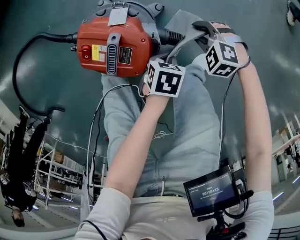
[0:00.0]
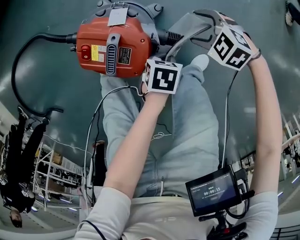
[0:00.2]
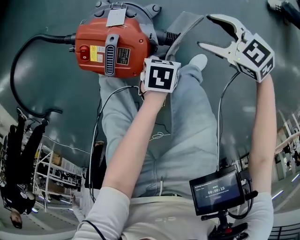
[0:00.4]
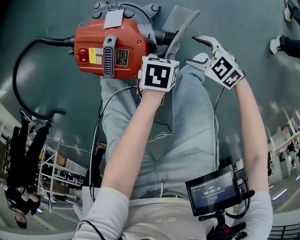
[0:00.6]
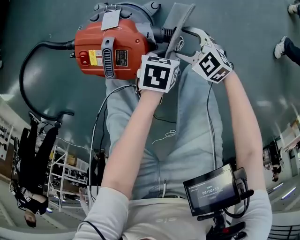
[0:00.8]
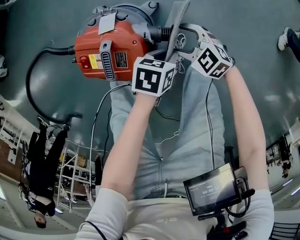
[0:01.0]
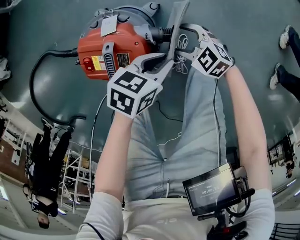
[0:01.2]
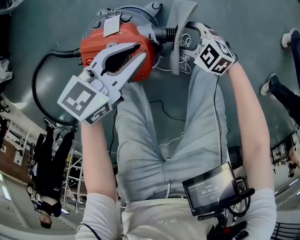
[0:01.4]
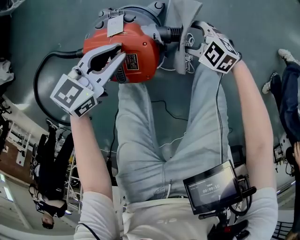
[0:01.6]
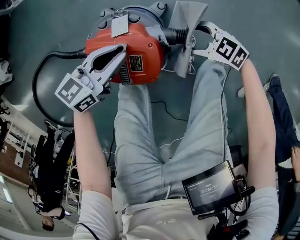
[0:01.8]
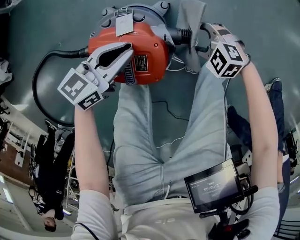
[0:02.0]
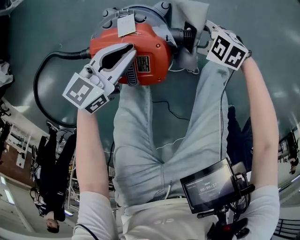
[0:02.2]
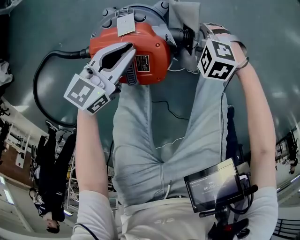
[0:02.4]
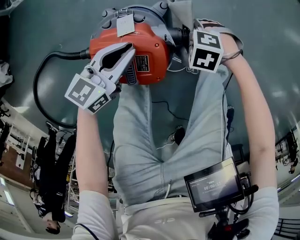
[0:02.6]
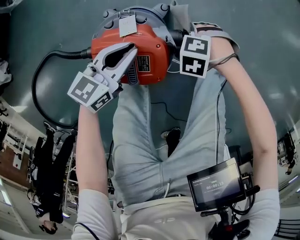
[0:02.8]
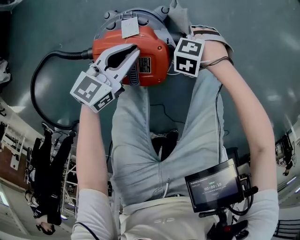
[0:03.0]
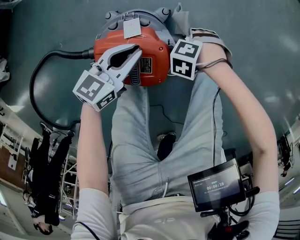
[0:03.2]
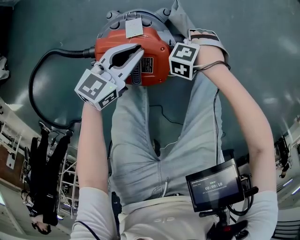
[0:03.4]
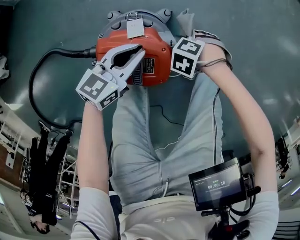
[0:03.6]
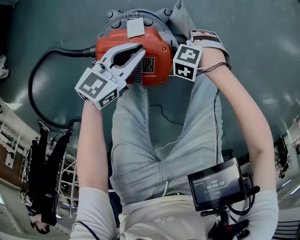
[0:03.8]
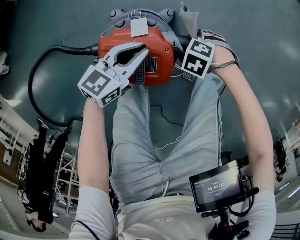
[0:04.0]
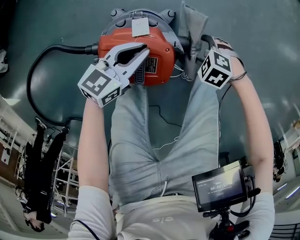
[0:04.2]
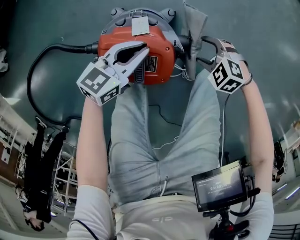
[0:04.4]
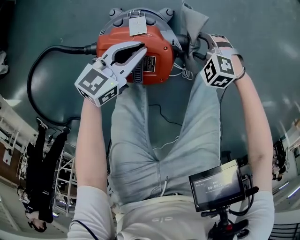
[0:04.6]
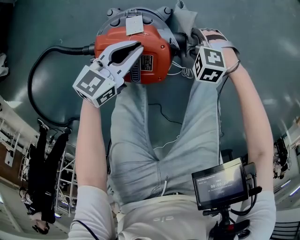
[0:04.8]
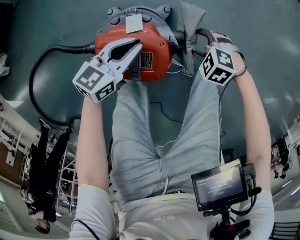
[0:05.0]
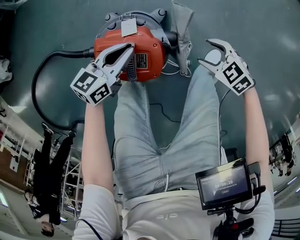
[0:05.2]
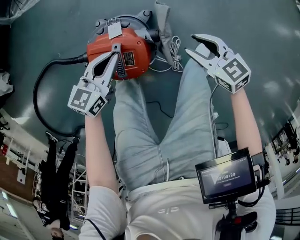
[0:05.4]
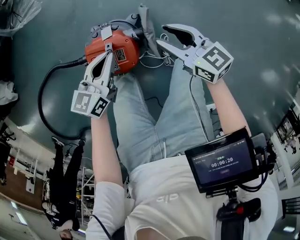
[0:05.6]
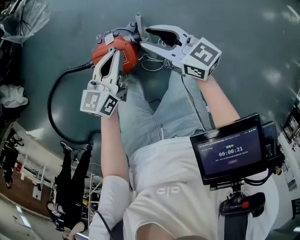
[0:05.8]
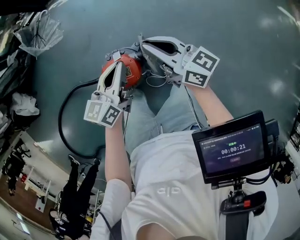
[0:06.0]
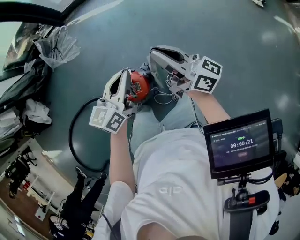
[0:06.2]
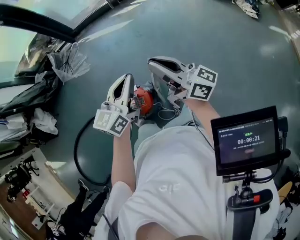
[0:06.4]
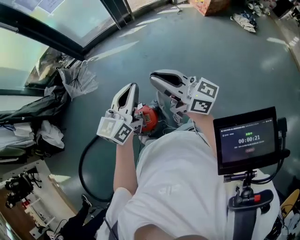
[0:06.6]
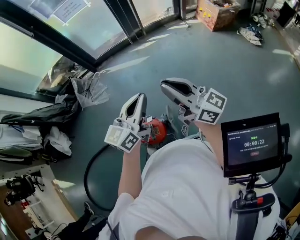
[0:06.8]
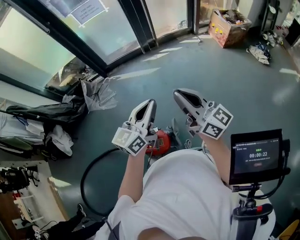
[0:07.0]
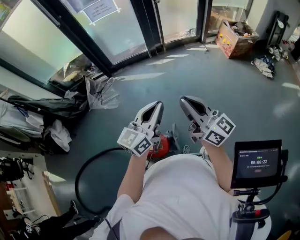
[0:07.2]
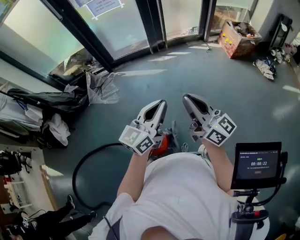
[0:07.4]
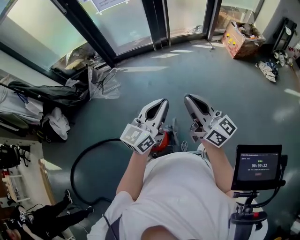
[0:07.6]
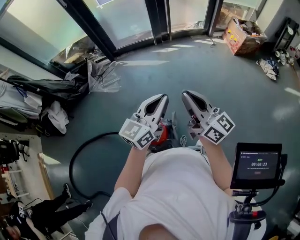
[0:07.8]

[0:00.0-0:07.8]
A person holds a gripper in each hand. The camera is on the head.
0:00.0 to 0:01.6: The right gripper moves about 10 cm upward and comes back, rotates about 40 degrees, and opens its fingers, while the left gripper changes place by about 20 cm, and angles its fingers upward, by about 30 degrees.
0:01.6 to 0:03.2: The right gripper turns by roughly 60 degrees.
0:03.2 to 0:04.6: The right gripper rotates about 30 degrees.
0:04.6 to 0:06.2: Both grippers move upward, roughly 50 cm. The right gripper tips its fingers upward by about 80 degrees, and closes, while the left gripper changes its angle by approximately 20 degrees.
0:06.2 to 0:07.8: The grippers both shift upward by about 15 cm. The left gripper swivels some 20 degrees. The right gripper swivels approximately 20 degrees.

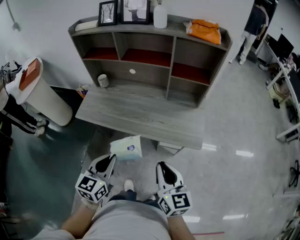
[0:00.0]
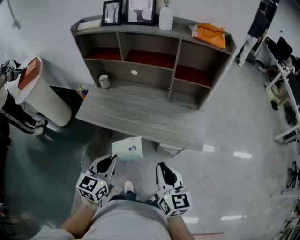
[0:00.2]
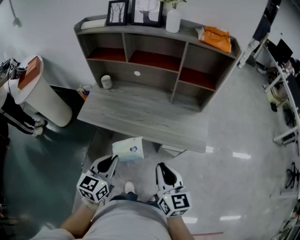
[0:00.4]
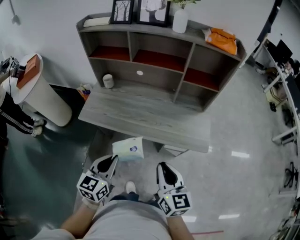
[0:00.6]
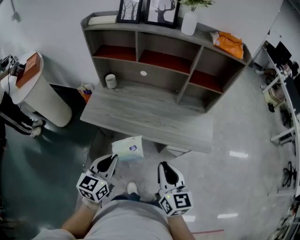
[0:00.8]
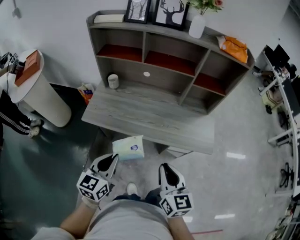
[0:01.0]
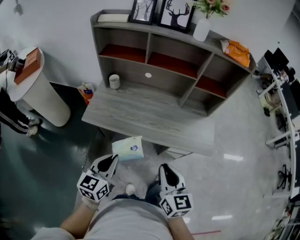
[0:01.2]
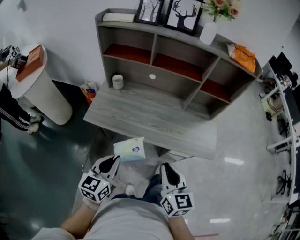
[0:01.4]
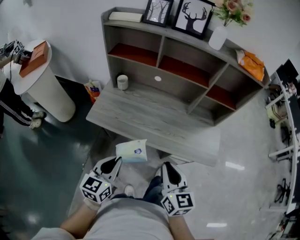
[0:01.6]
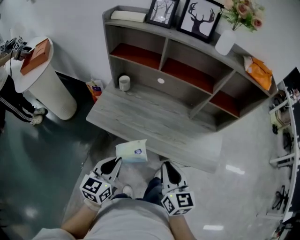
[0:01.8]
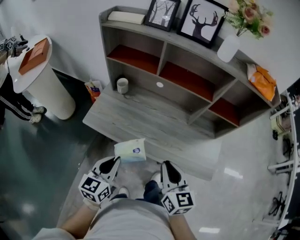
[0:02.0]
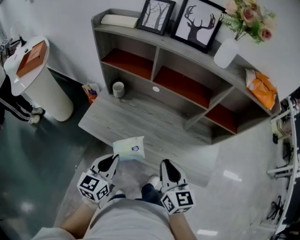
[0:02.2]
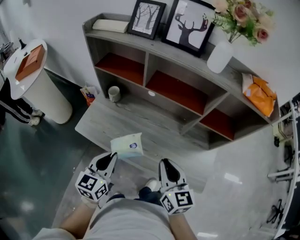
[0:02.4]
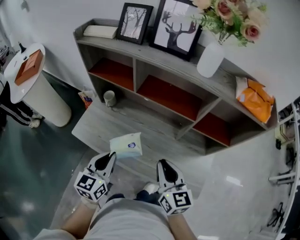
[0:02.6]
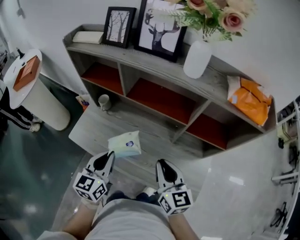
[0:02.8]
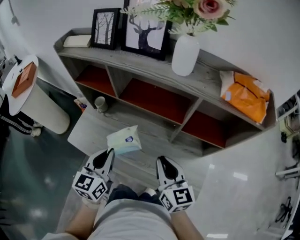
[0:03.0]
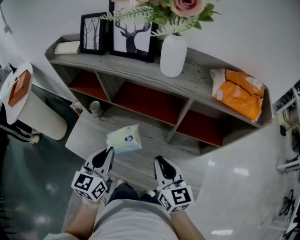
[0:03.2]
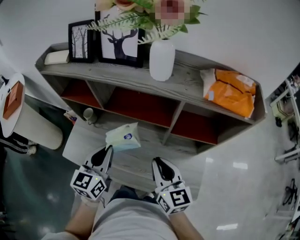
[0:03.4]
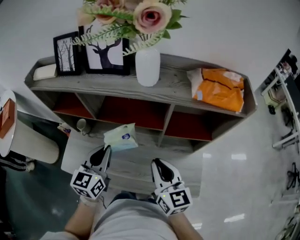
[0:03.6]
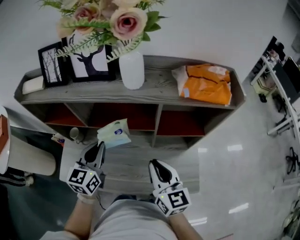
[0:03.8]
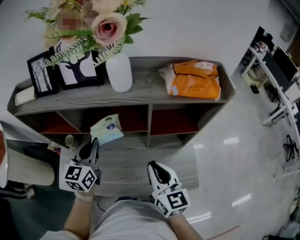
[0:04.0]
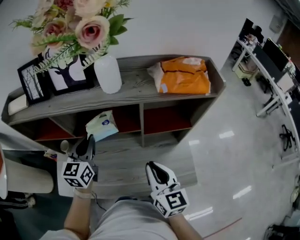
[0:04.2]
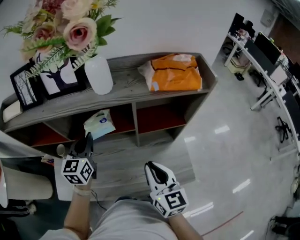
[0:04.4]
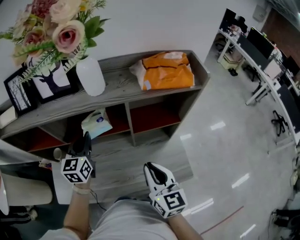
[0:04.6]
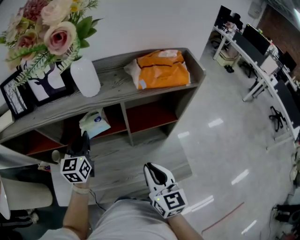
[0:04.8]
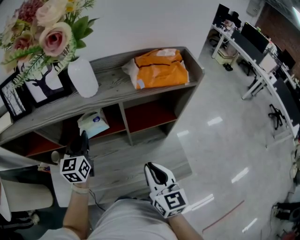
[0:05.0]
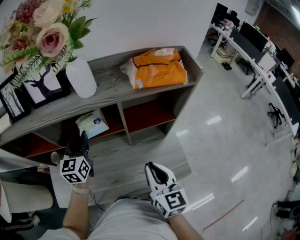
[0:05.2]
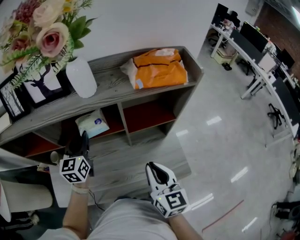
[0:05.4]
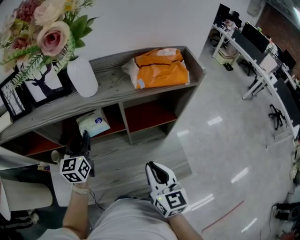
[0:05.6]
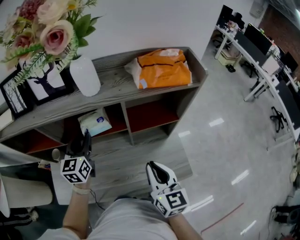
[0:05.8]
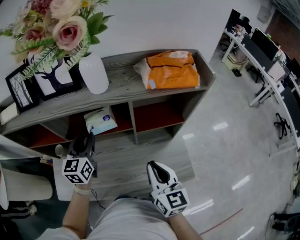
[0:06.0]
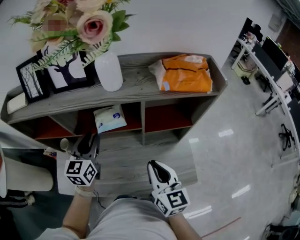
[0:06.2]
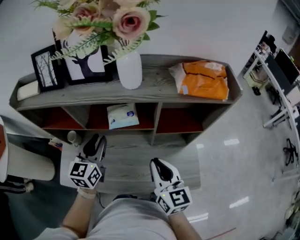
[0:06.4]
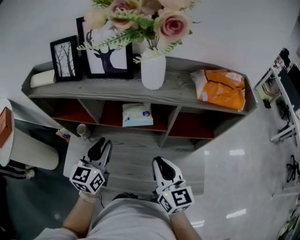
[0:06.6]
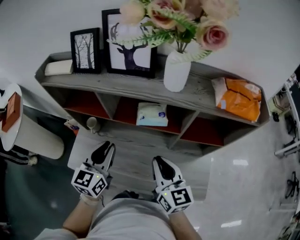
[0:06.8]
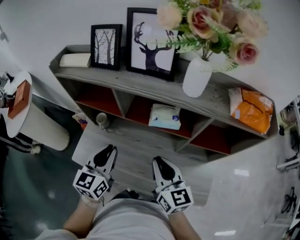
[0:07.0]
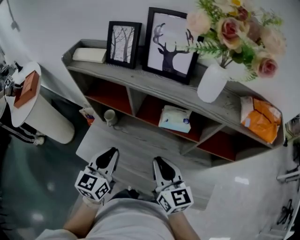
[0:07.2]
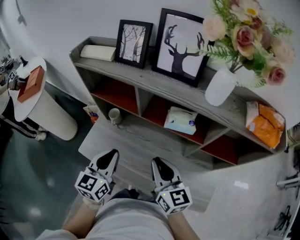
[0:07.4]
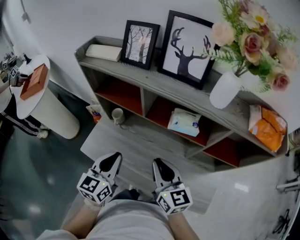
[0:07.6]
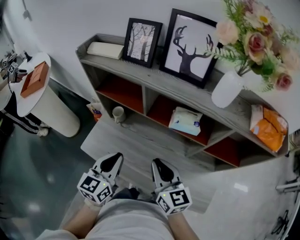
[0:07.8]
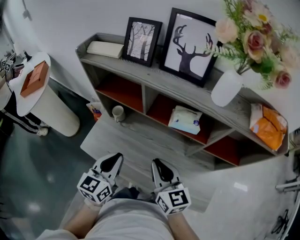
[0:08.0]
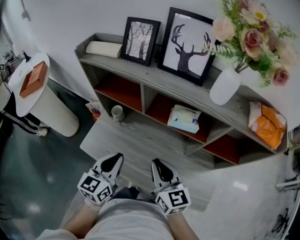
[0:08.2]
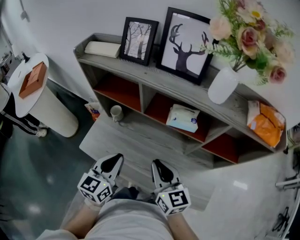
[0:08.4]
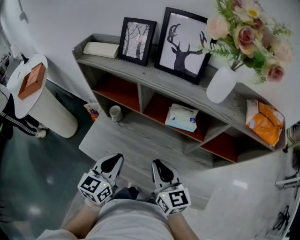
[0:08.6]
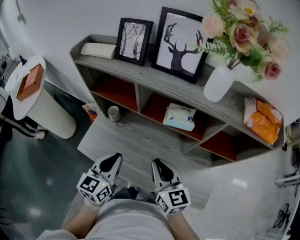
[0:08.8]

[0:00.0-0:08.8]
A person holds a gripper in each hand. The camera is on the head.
0:00.0 to 0:01.4: The grippers both shift to the left by roughly 20 cm.
0:01.4 to 0:03.0: Both grippers travel together forward and to the right, about 30 cm.
0:03.0 to 0:04.4: The left gripper heads forward, covering approximately 20 cm, and changes its angle by some 20 degrees, while the right gripper moves about 5 cm, and rotates approximately 30 degrees.
0:04.4 to 0:05.8: The left gripper opens.
0:05.8 to 0:07.4: The right gripper shifts by roughly 20 cm, and swivels roughly 40 degrees. The left gripper changes place by roughly 25 cm, and closes up.
0:07.4 to 0:08.8: There are only small adjustments of the grippers.

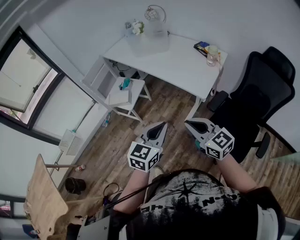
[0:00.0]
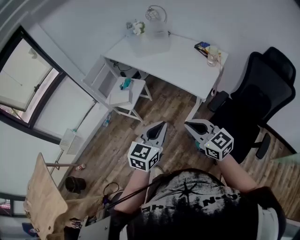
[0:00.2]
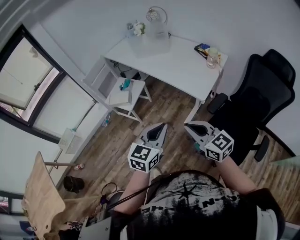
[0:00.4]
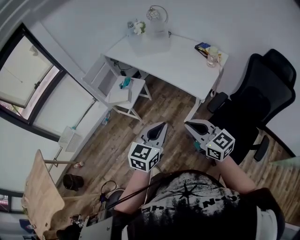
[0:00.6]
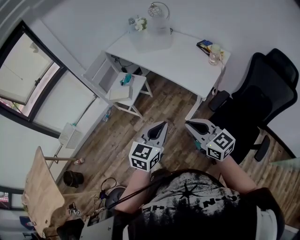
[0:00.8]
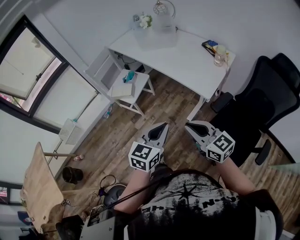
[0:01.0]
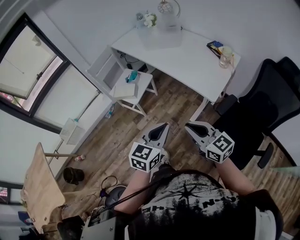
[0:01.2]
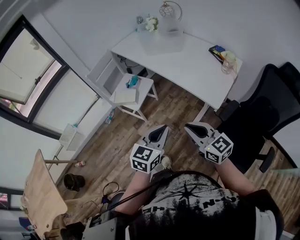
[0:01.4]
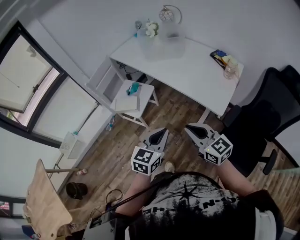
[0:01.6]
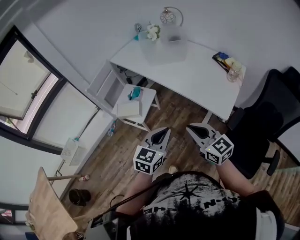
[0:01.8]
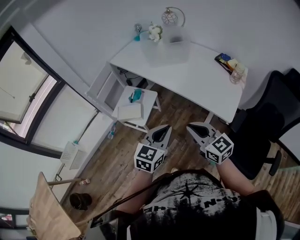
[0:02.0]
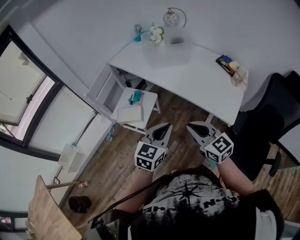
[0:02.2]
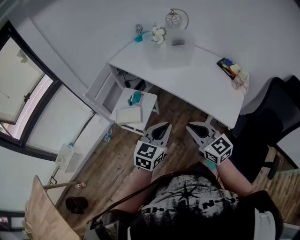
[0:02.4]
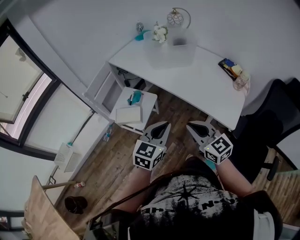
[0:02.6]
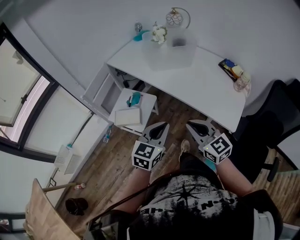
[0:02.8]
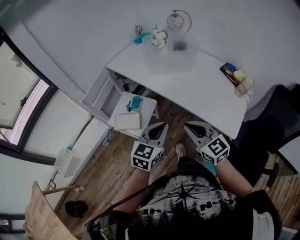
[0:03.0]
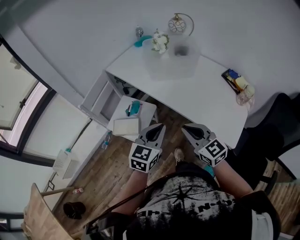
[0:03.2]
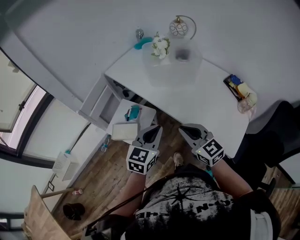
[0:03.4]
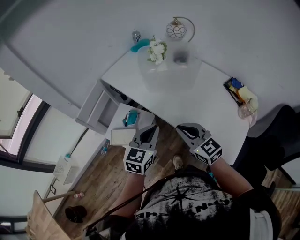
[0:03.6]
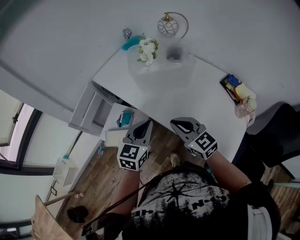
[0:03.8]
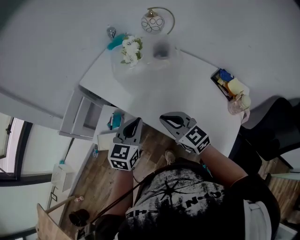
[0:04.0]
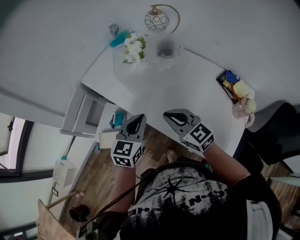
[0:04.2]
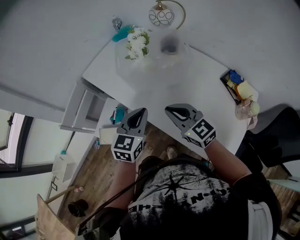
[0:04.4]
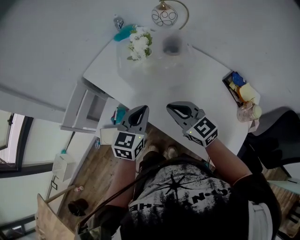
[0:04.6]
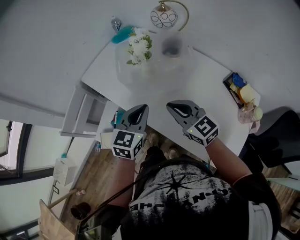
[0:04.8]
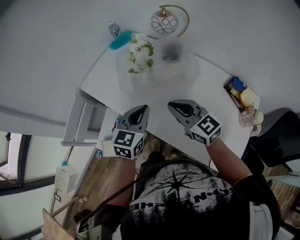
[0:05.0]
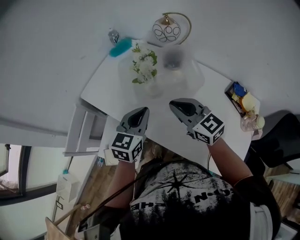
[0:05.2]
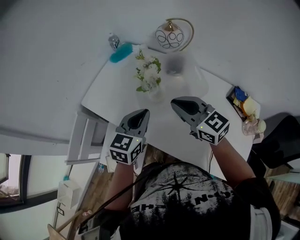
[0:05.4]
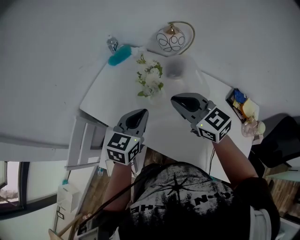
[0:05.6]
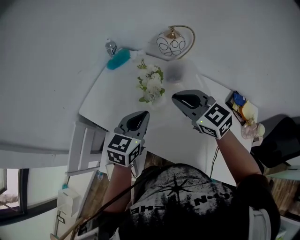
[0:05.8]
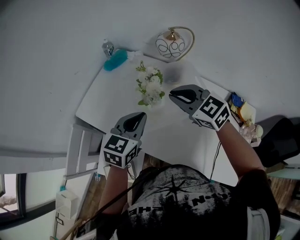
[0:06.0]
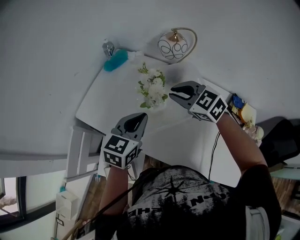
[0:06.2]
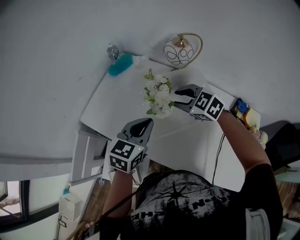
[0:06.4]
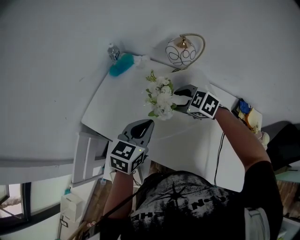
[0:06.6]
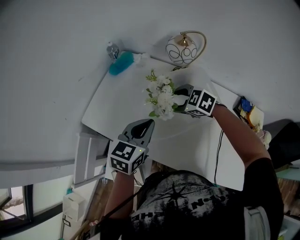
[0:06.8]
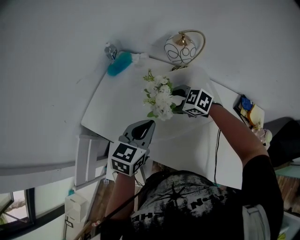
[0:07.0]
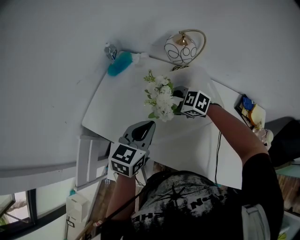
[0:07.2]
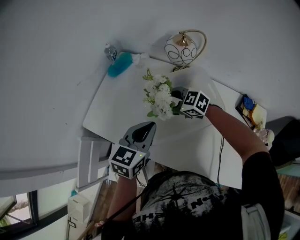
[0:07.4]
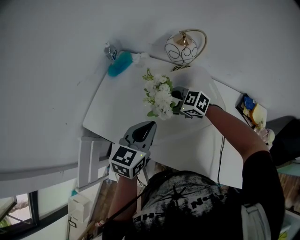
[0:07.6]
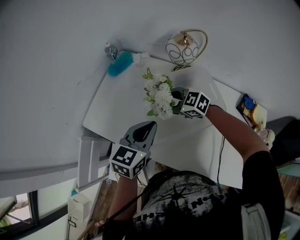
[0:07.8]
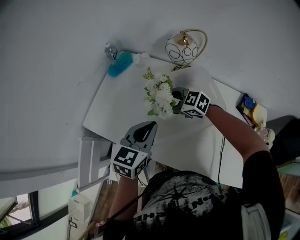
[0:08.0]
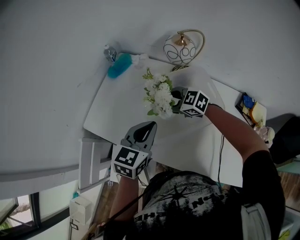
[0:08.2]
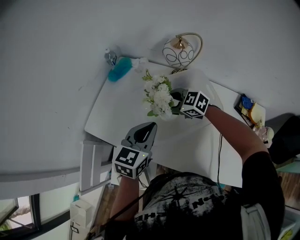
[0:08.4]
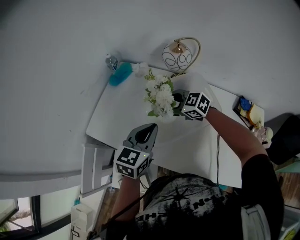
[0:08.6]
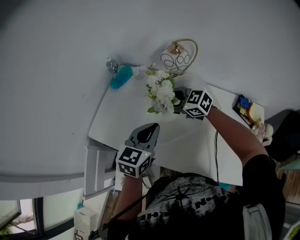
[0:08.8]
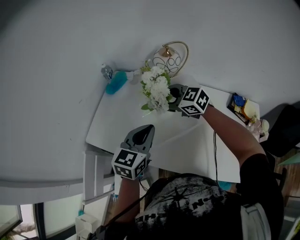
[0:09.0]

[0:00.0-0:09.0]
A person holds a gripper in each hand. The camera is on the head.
0:00.0 to 0:01.6: The grippers both shift forward and to the left by some 15 cm.
0:01.6 to 0:03.0: The right gripper heads forward and to the left, covering some 20 cm; the left gripper heads forward, covering some 20 cm.
0:03.0 to 0:04.4: The two grippers go about 30 cm forward.
0:04.4 to 0:06.0: The grippers both shift forward by some 20 cm.
0:06.0 to 0:07.6: The right gripper heads downward and forward, covering some 20 cm, and opens up.
0:07.6 to 0:09.0: The right gripper goes roughly 10 cm upward.
